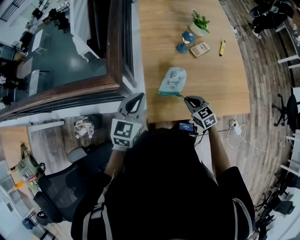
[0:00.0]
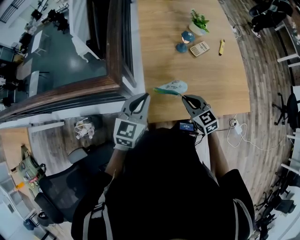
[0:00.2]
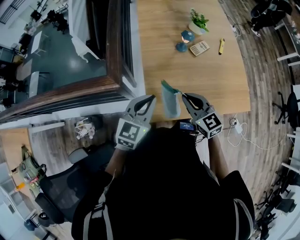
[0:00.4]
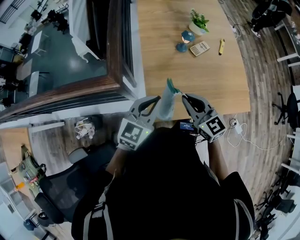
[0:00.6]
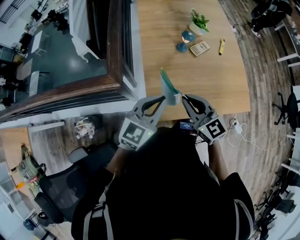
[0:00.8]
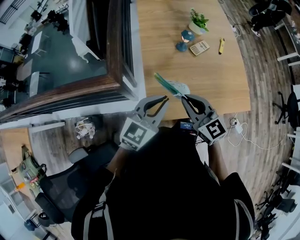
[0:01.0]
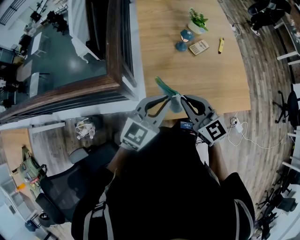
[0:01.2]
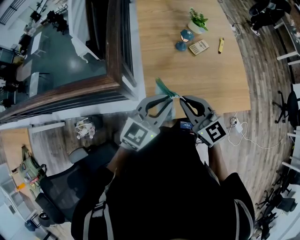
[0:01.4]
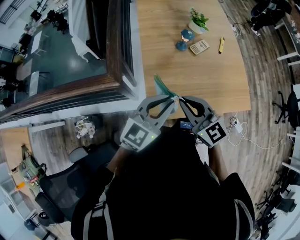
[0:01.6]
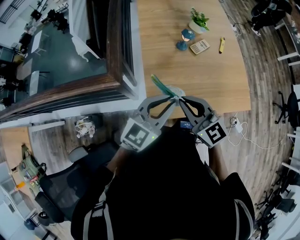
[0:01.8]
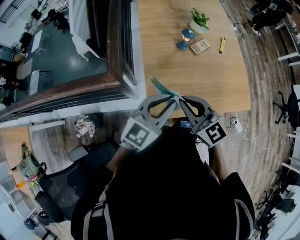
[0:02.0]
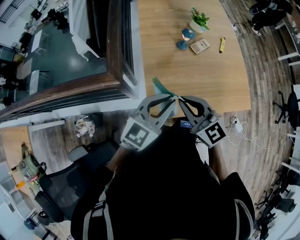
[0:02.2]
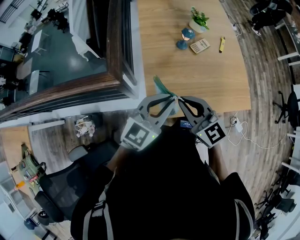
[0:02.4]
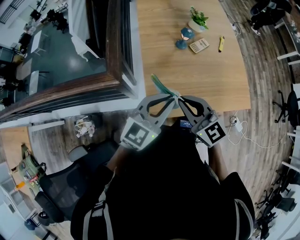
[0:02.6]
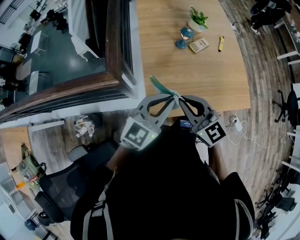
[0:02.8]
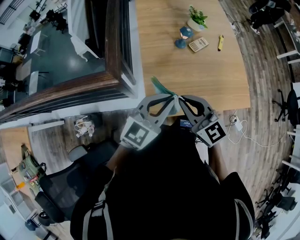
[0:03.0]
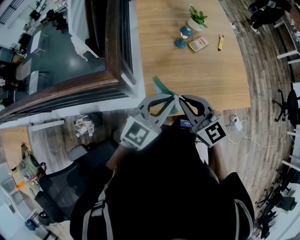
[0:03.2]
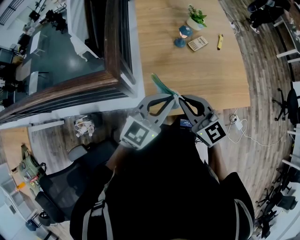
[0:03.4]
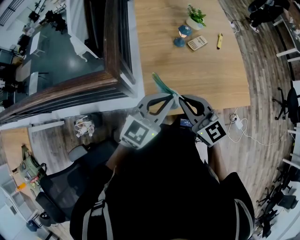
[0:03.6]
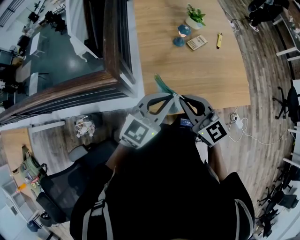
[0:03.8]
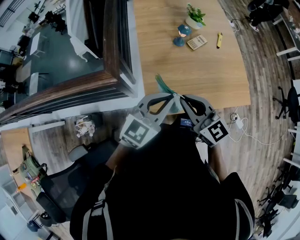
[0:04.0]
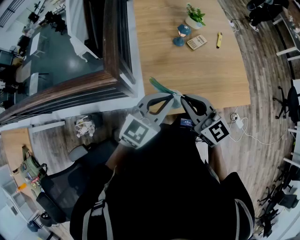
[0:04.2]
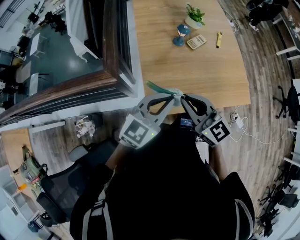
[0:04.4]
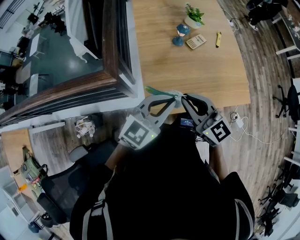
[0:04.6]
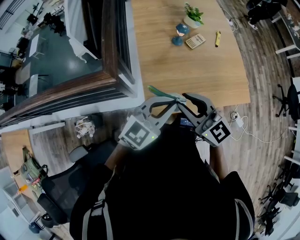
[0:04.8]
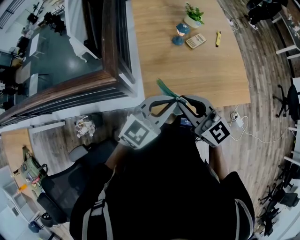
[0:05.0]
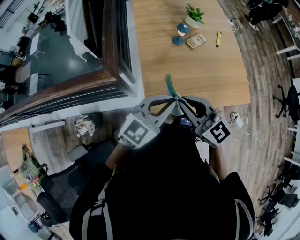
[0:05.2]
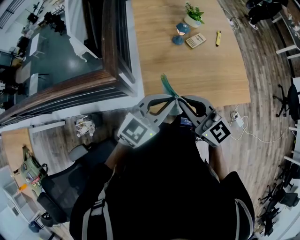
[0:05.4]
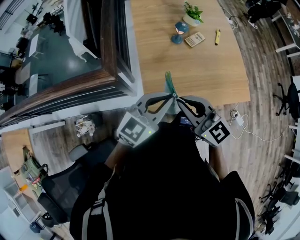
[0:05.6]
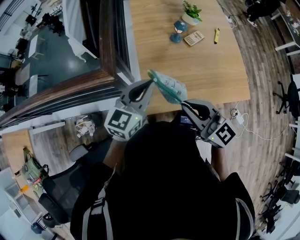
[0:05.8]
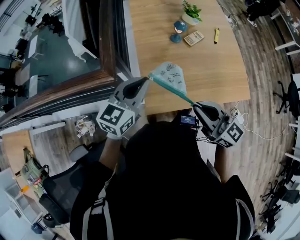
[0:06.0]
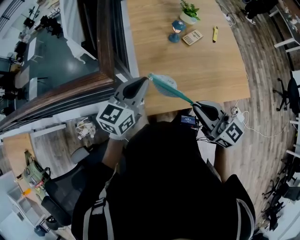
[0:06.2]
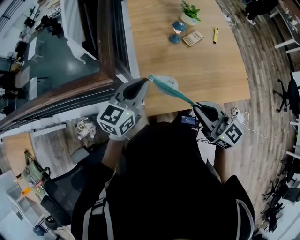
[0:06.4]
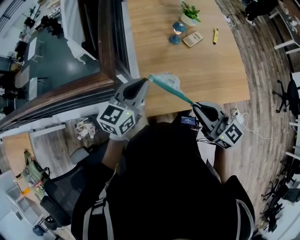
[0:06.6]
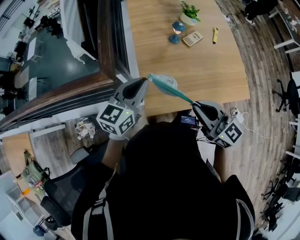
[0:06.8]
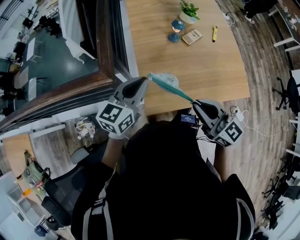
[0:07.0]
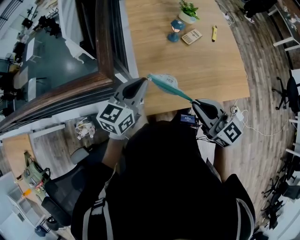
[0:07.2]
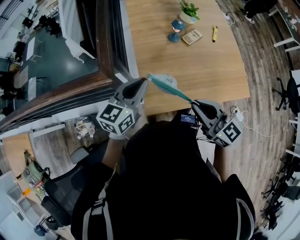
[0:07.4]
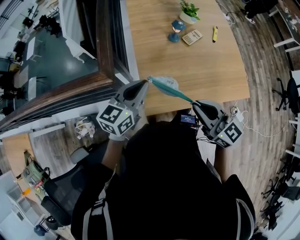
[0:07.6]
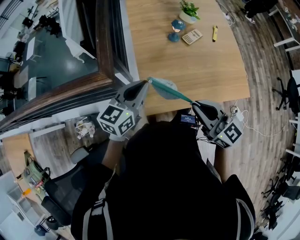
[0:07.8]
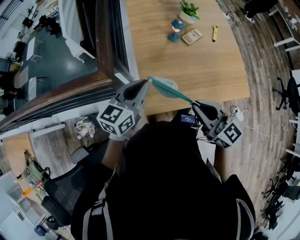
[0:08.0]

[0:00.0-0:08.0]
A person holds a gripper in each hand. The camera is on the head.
0.0 to 1.6 s: The right gripper is displaced upward by approximately 20 cm, and changes its angle by approximately 30 degrees. Meanwhile the left gripper is displaced to the right and upward by approximately 10 cm, and rotates roughly 20 degrees.
1.6 to 3.2 s: The two grippers keep their place.
3.2 to 4.8 s: The right gripper opens its fingers.
4.8 to 6.4 s: The left gripper moves to the left and forward, some 10 cm, and rotates approximately 30 degrees. The right gripper goes approximately 5 cm to the right, and closes up.
6.4 to 8.0 s: There are only small adjustments of the grippers.

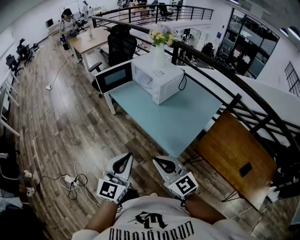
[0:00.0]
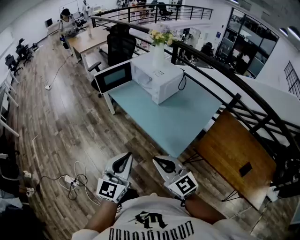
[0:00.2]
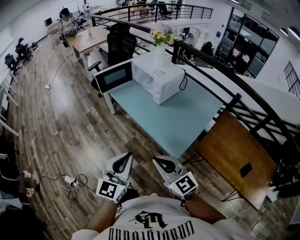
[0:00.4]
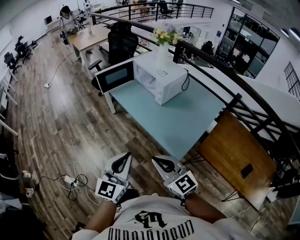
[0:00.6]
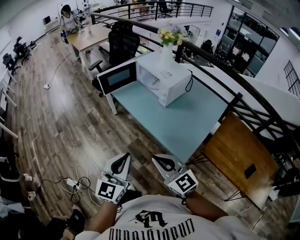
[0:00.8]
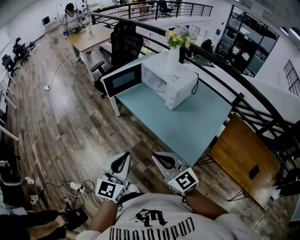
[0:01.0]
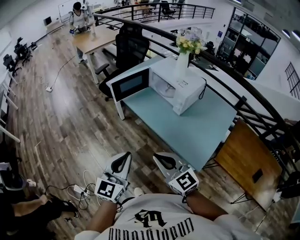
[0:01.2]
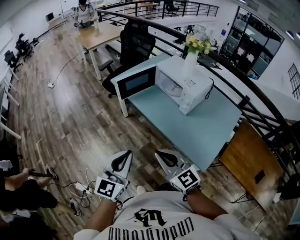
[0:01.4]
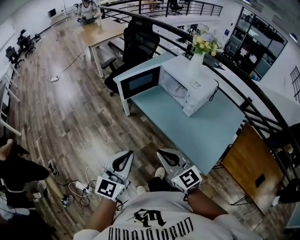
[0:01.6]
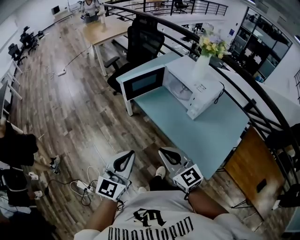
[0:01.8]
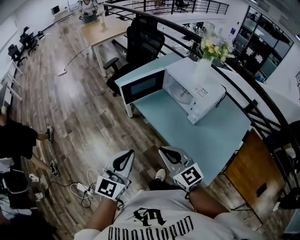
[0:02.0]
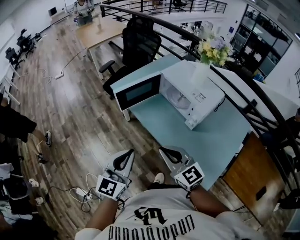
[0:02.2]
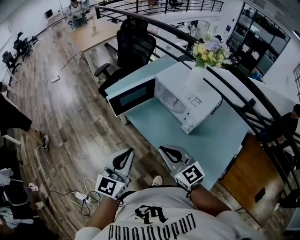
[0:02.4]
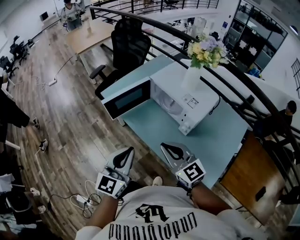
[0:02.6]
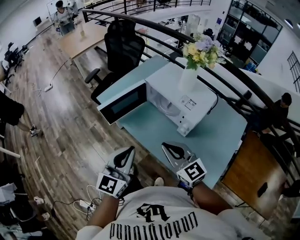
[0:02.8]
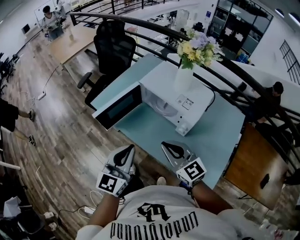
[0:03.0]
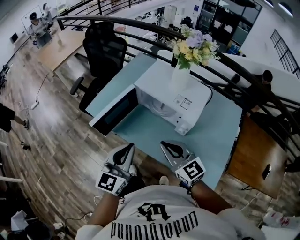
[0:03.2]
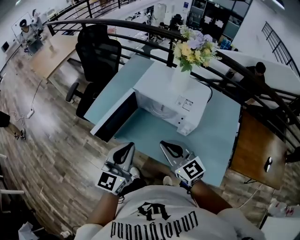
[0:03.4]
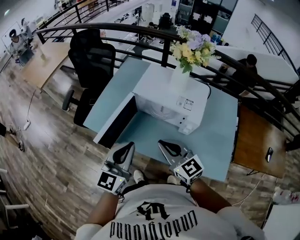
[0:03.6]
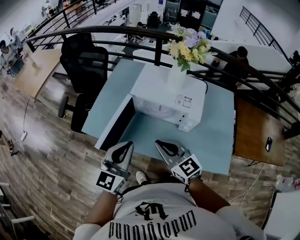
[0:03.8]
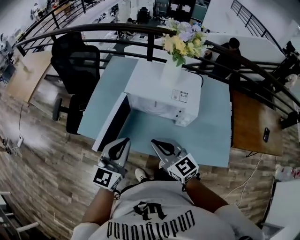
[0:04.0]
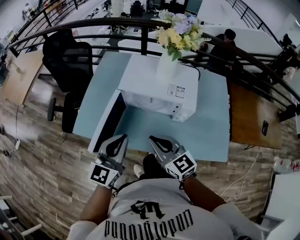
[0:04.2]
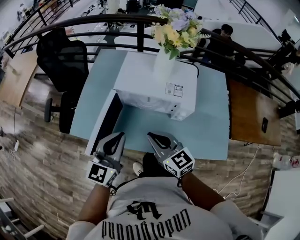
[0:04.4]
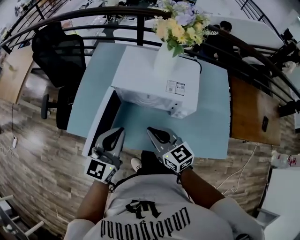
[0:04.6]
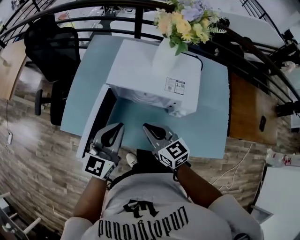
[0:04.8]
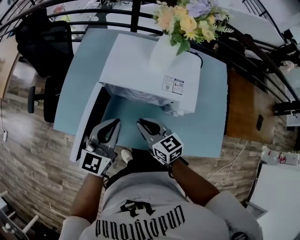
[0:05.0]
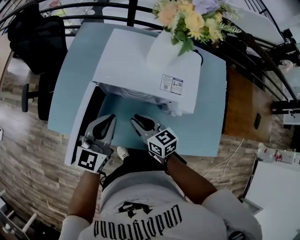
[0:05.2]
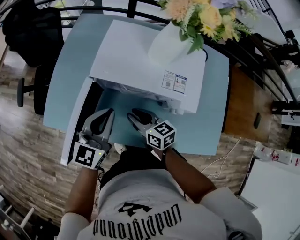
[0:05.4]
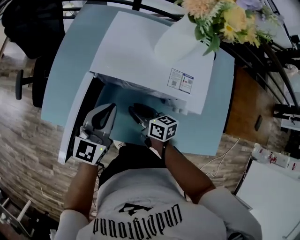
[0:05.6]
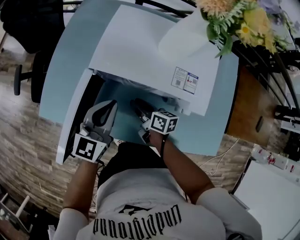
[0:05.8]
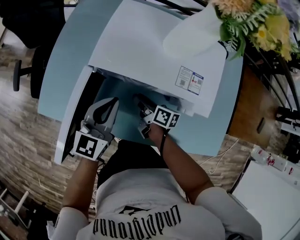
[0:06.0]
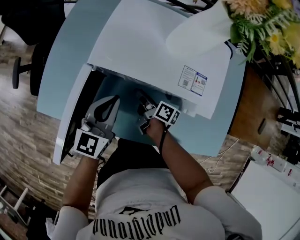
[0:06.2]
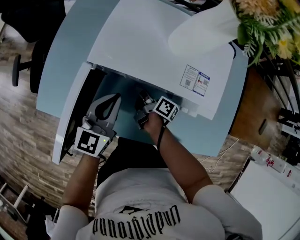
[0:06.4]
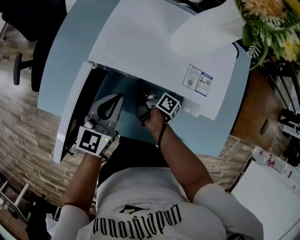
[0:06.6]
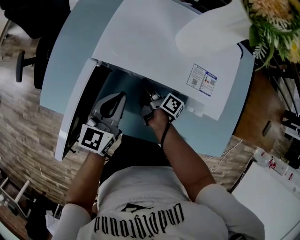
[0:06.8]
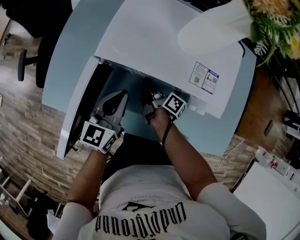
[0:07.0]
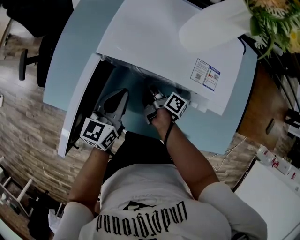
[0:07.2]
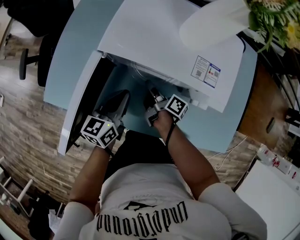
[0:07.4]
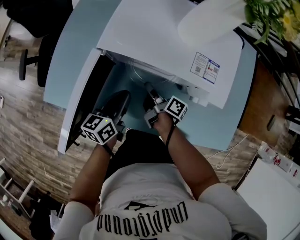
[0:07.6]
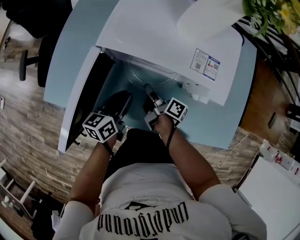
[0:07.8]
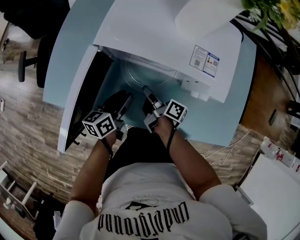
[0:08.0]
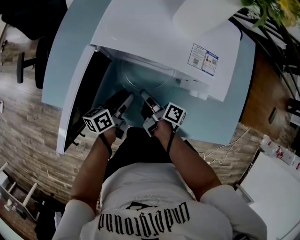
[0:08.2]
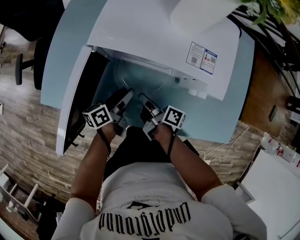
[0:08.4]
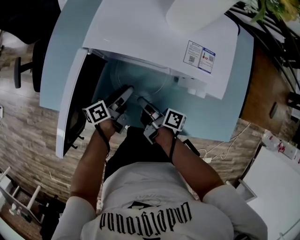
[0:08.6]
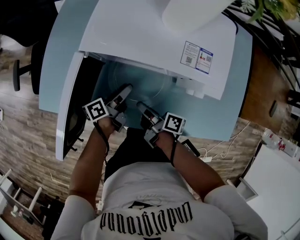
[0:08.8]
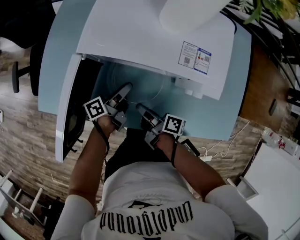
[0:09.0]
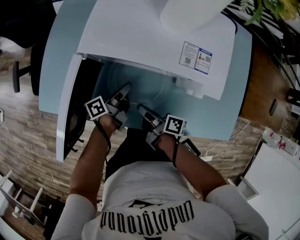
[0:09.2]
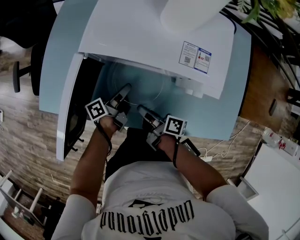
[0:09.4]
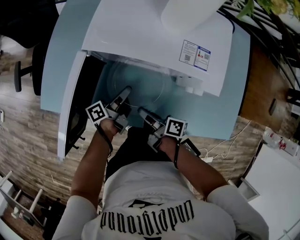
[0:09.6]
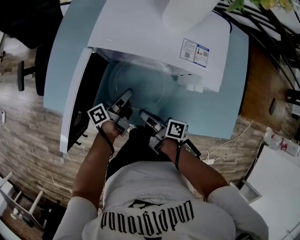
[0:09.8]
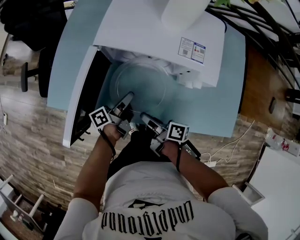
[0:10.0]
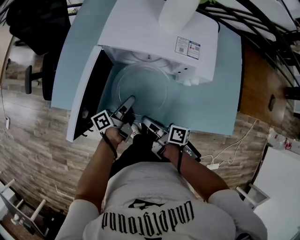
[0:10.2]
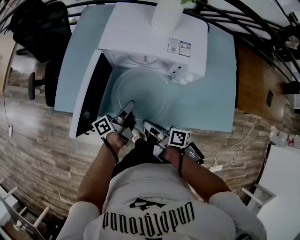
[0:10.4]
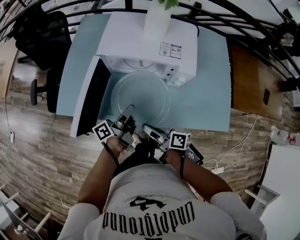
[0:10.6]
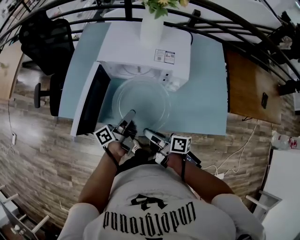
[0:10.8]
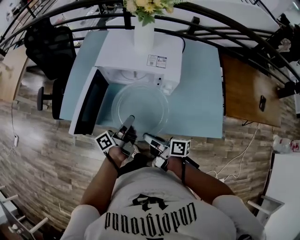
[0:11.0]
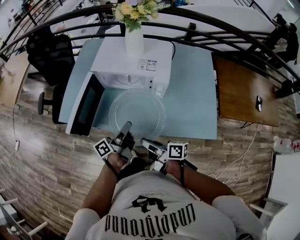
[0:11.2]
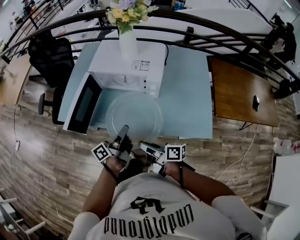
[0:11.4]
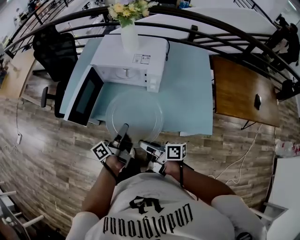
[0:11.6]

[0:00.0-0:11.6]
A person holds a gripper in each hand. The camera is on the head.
0.0 to 1.4 s: Both grippers travel together to the left and forward, about 25 cm.
1.4 to 2.8 s: The right gripper goes some 30 cm forward and to the right. Meanwhile the left gripper goes roughly 25 cm forward.
2.8 to 4.4 s: The right gripper shifts by some 15 cm, and swivels roughly 30 degrees; the left gripper changes place by approximately 20 cm, and swivels roughly 30 degrees.
4.4 to 5.8 s: Both grippers travel together downward and forward, some 25 cm. The right gripper twists approximately 50 degrees clockwise, seen from behind, and opens its fingers.
5.8 to 7.2 s: The left gripper shifts approximately 10 cm downward, while the right gripper ends up some 5 cm from where it was, and turns by about 40 degrees.
7.2 to 8.8 s: The left gripper shifts approximately 10 cm downward, rolls counterclockwise, seen from behind, by some 50 degrees, and opens its fingers, while the right gripper heads backward, covering approximately 15 cm.
8.8 to 10.2 s: The two grippers go approximately 10 cm backward and upward. The left gripper closes.
10.2 to 11.6 s: The grippers both shift backward, upward and to the right by roughly 25 cm.

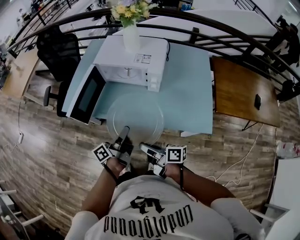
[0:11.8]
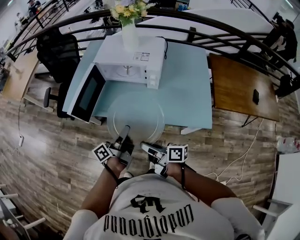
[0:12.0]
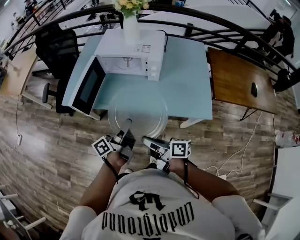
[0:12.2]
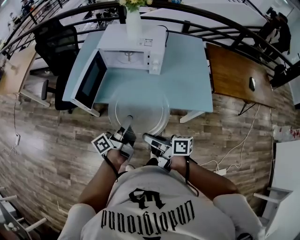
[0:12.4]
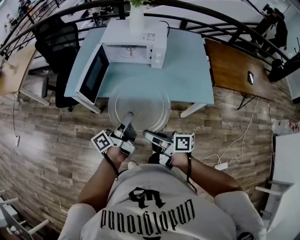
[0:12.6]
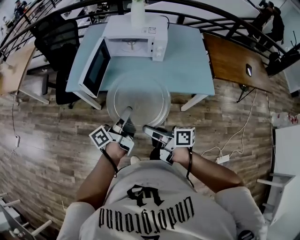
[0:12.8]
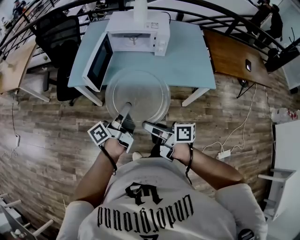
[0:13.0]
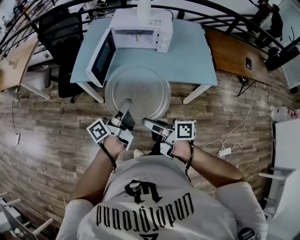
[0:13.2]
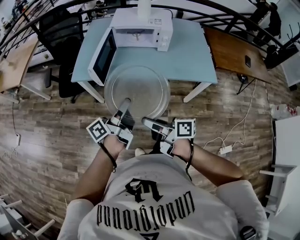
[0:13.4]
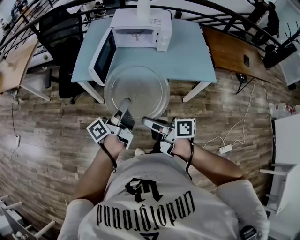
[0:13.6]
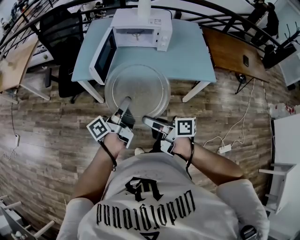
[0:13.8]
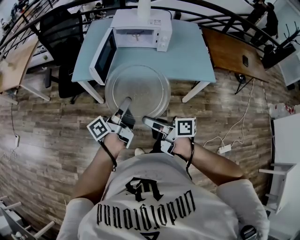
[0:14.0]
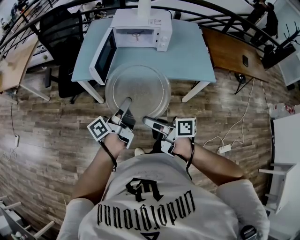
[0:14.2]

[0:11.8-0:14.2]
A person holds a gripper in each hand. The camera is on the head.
11.8 to 13.0 s: The grippers both shift to the left and backward by roughly 20 cm.
13.0 to 14.2 s: The right gripper shifts by some 5 cm. The left gripper moves roughly 5 cm.

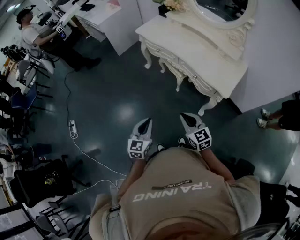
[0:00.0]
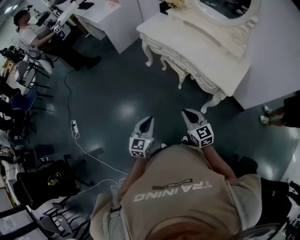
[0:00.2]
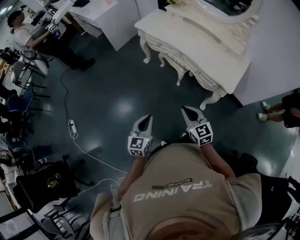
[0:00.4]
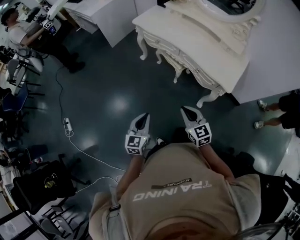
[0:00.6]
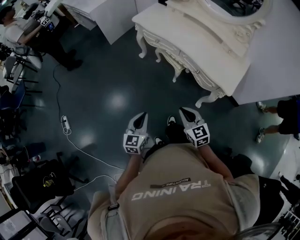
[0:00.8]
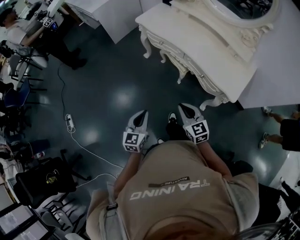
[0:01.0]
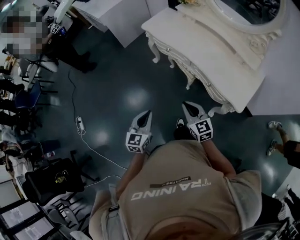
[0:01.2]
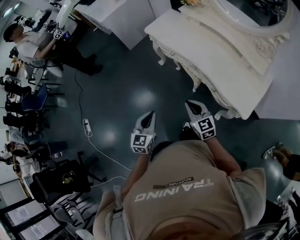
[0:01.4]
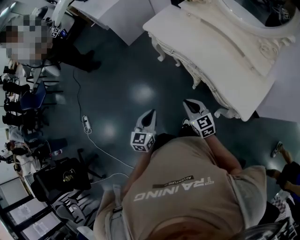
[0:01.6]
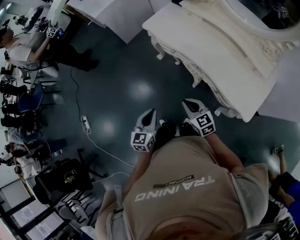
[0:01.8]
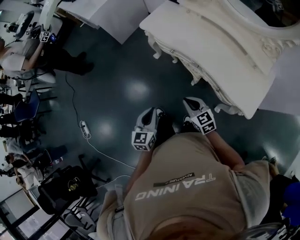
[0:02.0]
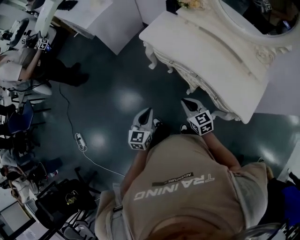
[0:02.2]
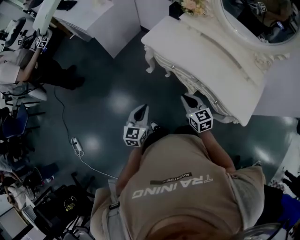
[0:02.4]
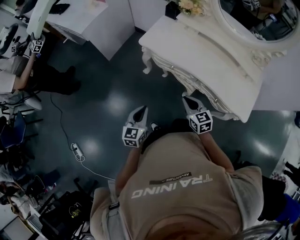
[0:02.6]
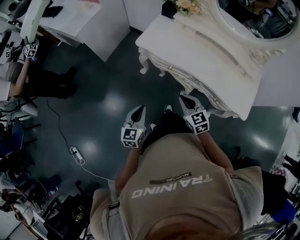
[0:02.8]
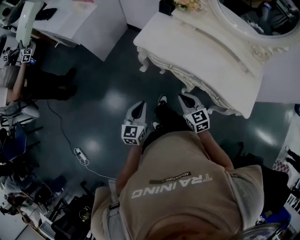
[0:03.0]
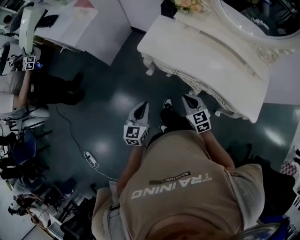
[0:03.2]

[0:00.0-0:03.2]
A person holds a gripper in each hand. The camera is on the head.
0.0 to 1.6 s: The grippers both shift forward by about 30 cm.
1.6 to 3.2 s: The right gripper shifts some 25 cm forward, and turns by approximately 20 degrees; the left gripper shifts approximately 35 cm forward and to the left.
